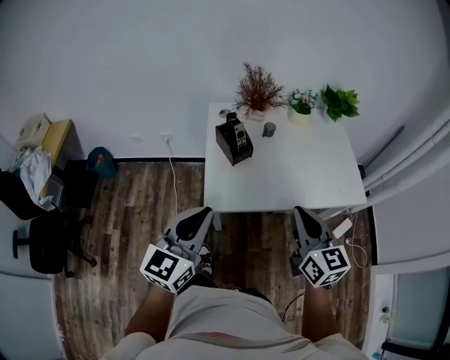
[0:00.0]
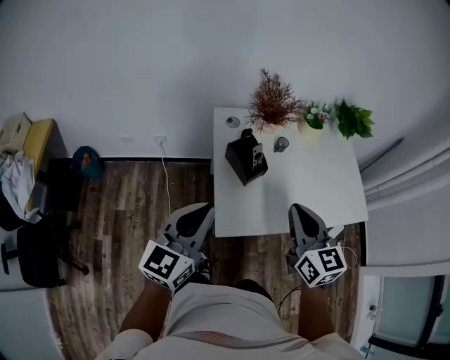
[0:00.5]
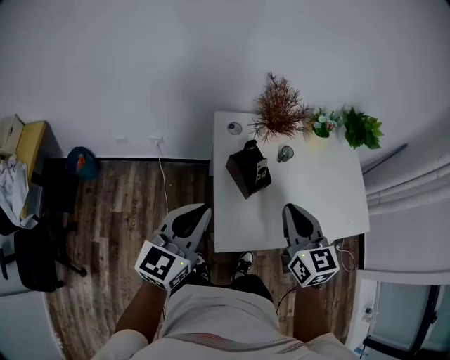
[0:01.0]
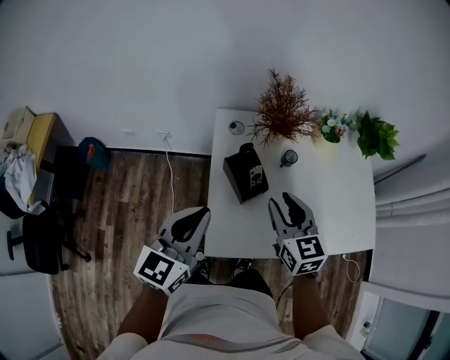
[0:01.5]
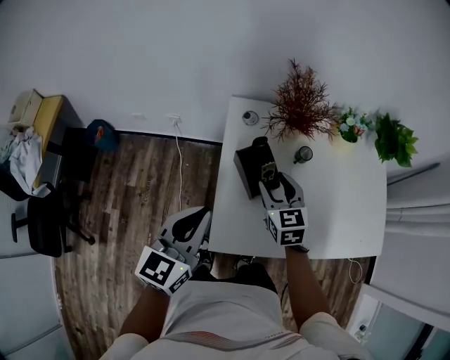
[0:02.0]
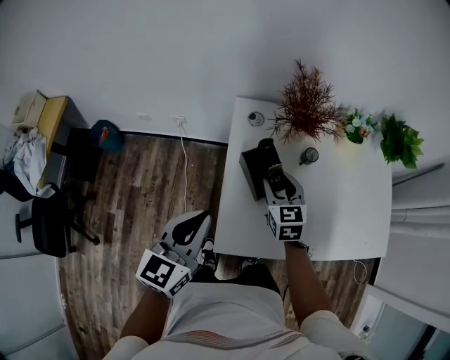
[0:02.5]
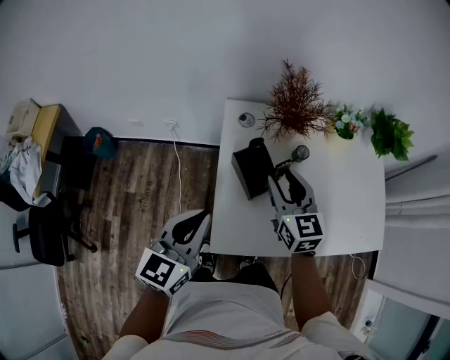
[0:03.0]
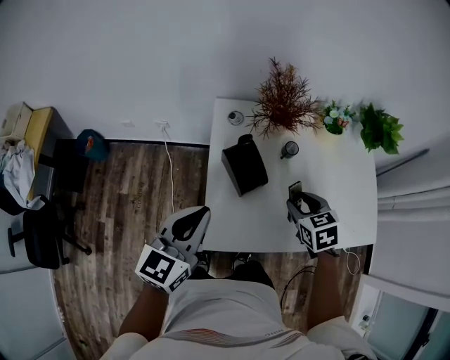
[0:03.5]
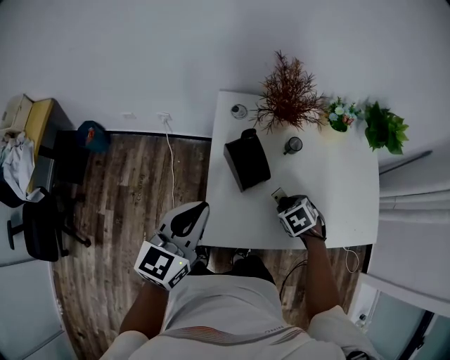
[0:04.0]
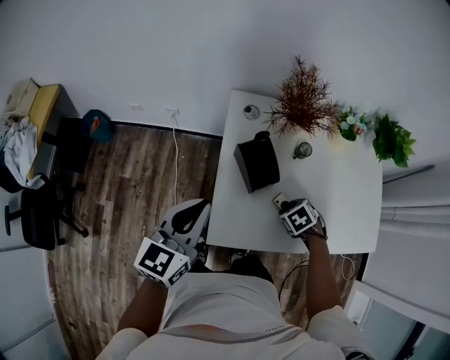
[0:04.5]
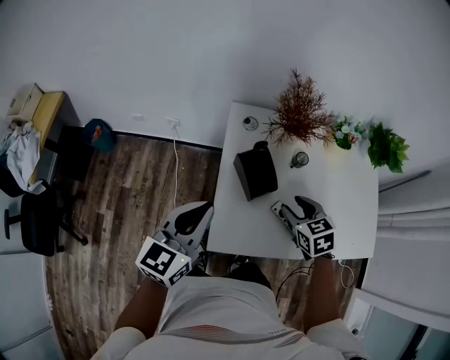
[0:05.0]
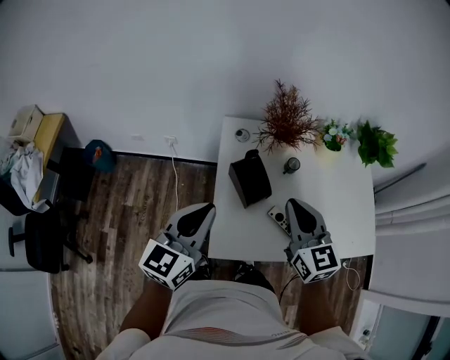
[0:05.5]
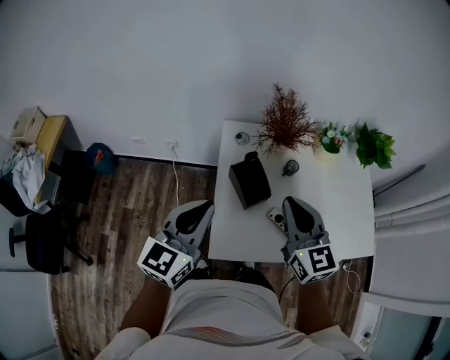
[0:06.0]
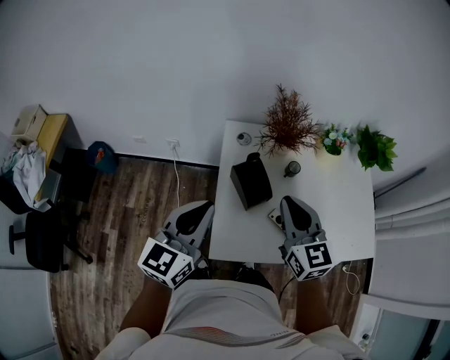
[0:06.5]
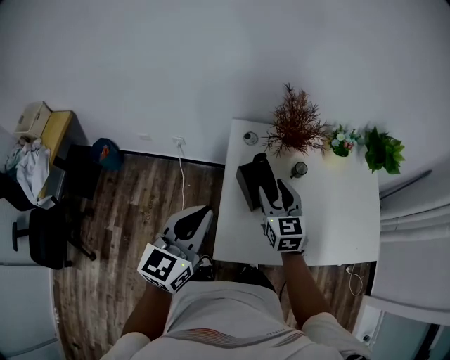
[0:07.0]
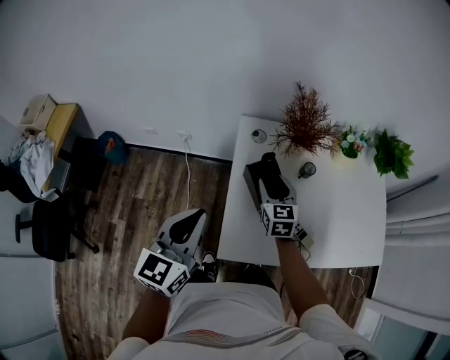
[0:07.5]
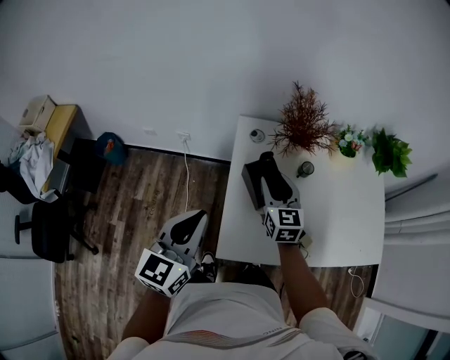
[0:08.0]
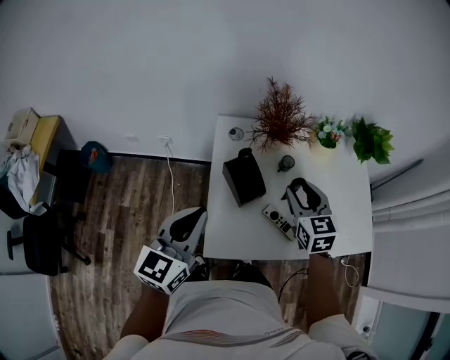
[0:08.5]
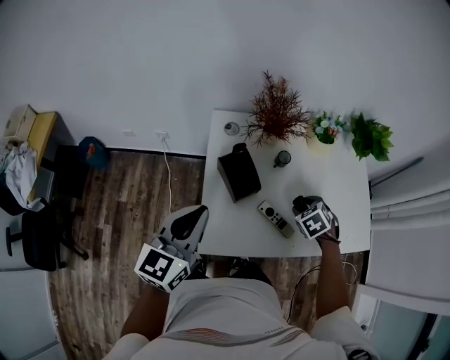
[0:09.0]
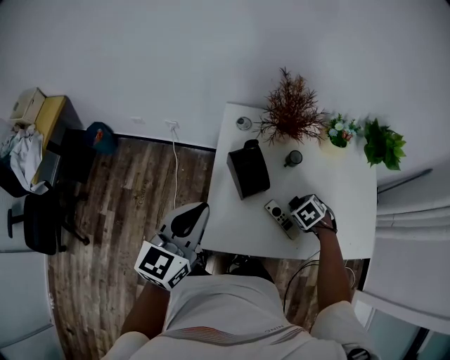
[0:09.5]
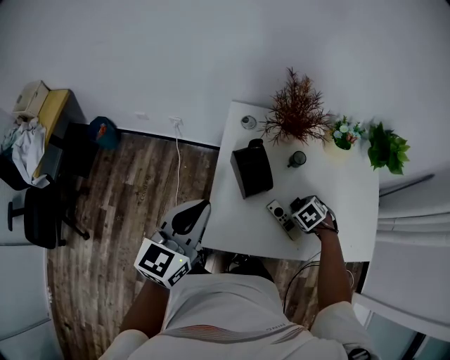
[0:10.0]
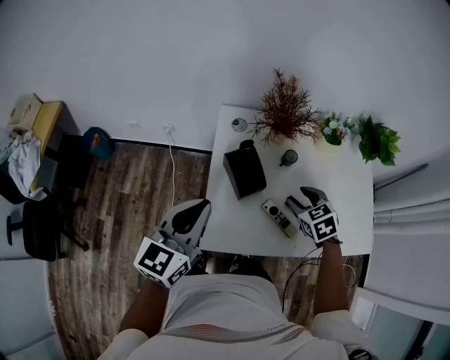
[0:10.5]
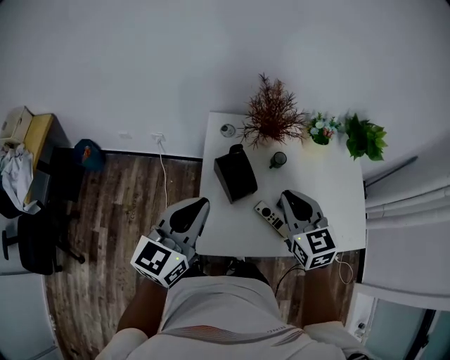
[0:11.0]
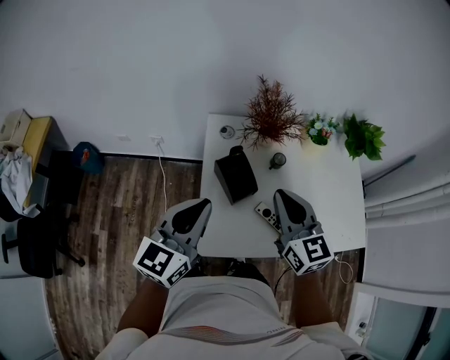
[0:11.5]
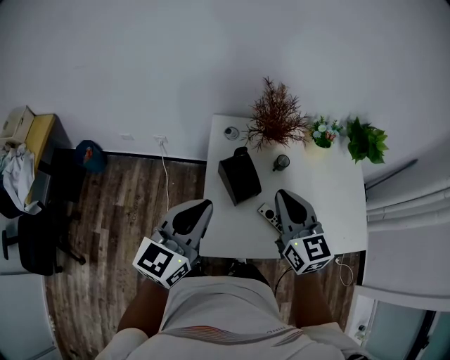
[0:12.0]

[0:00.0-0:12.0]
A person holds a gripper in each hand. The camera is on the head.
0.0 to 2.0 s: The left gripper heads forward, covering about 20 cm. The right gripper goes some 35 cm forward, to the left and downward, changes its angle by roughly 20 degrees, and opens its fingers.
2.0 to 4.0 s: The right gripper moves some 20 cm, and angles its fingers downward, by approximately 50 degrees.
4.0 to 6.0 s: The left gripper moves upward, roughly 5 cm; the right gripper goes some 30 cm upward, tilts its fingers about 70 degrees upward, and closes its fingers.
6.0 to 8.0 s: The right gripper is displaced downward, forward and to the left by some 15 cm, and opens its fingers. The left gripper ends up some 5 cm from where it was.
8.0 to 10.0 s: The right gripper changes place by some 30 cm, and tips its fingers downward by approximately 60 degrees.
10.0 to 12.0 s: The right gripper moves upward, approximately 30 cm, angles its fingers upward, by approximately 70 degrees, and closes.

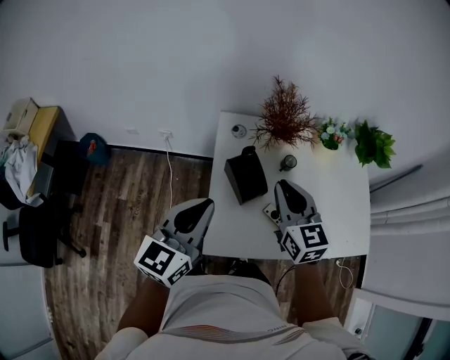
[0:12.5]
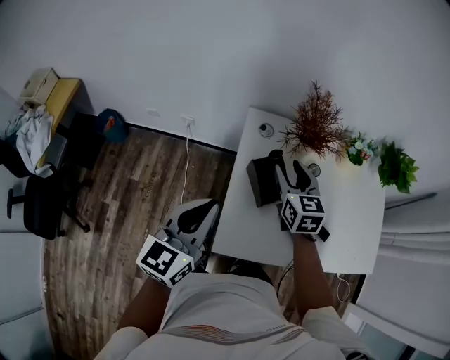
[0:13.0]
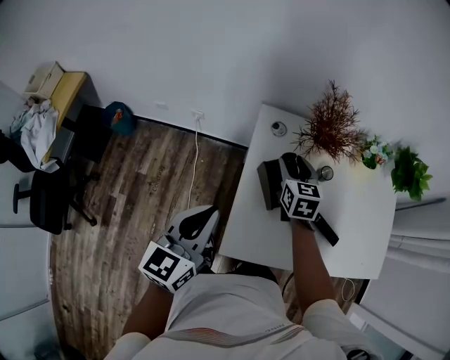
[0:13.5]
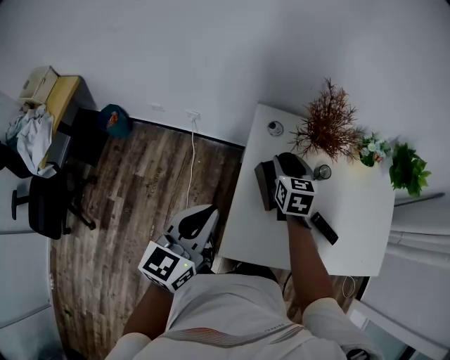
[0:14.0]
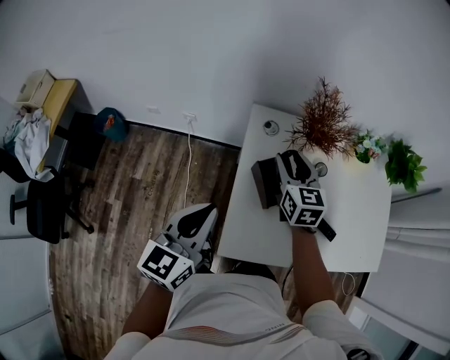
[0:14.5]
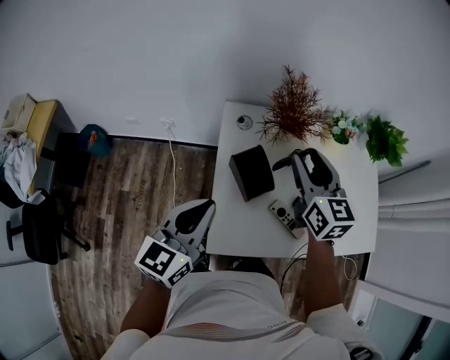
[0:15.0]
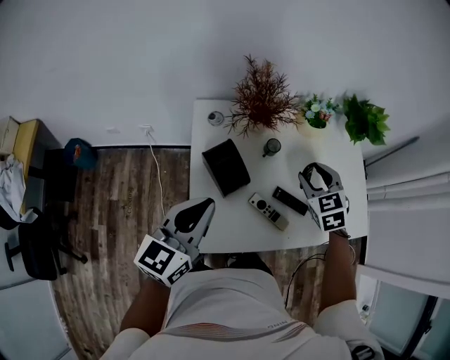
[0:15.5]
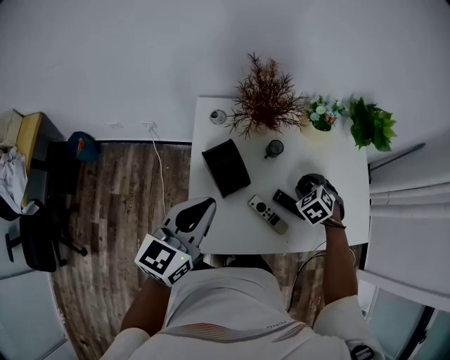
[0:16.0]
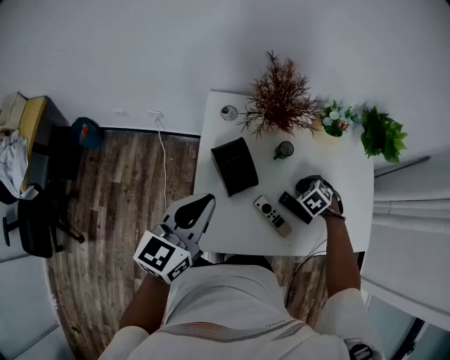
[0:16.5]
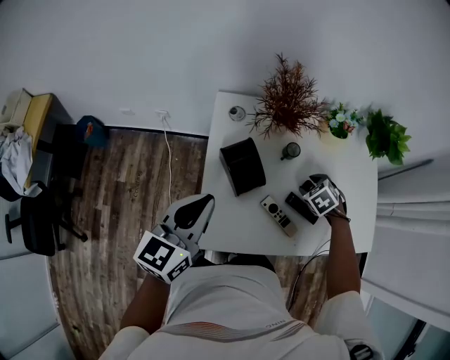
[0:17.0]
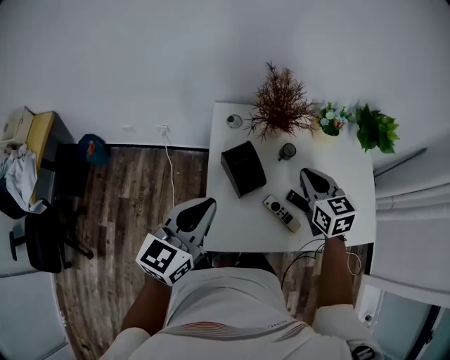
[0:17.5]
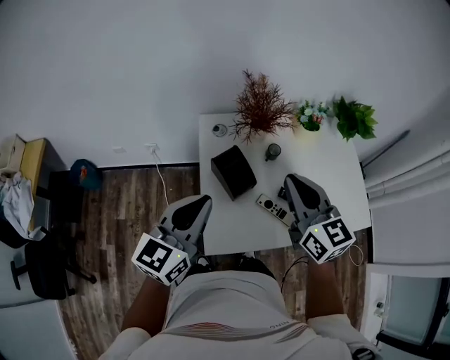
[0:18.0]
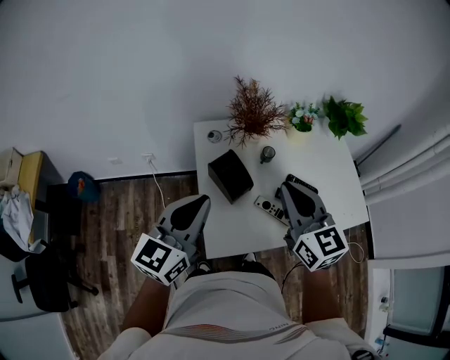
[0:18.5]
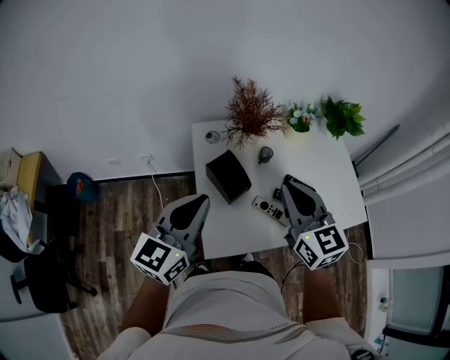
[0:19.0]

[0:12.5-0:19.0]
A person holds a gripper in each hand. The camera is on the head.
12.5 to 14.5 s: The left gripper travels to the left by approximately 5 cm; the right gripper is displaced forward, downward and to the left by roughly 15 cm, and opens its fingers.
14.5 to 17.0 s: The right gripper ends up roughly 30 cm from where it was, and tips its fingers downward by approximately 50 degrees.
17.0 to 19.0 s: The right gripper goes some 35 cm upward and backward, tips its fingers upward by roughly 60 degrees, and closes; the left gripper shifts roughly 10 cm upward.

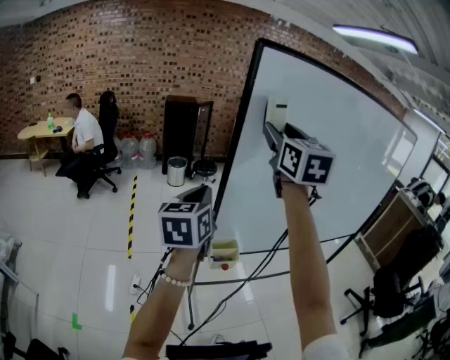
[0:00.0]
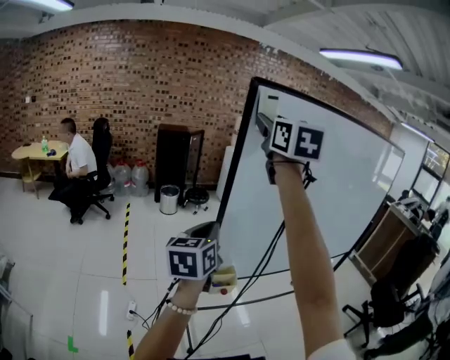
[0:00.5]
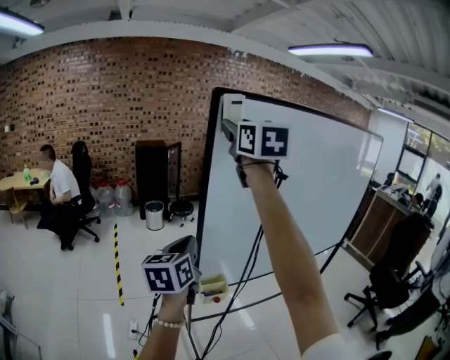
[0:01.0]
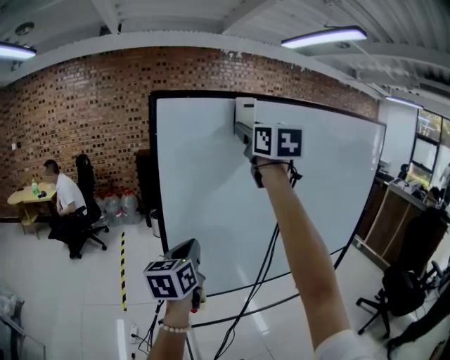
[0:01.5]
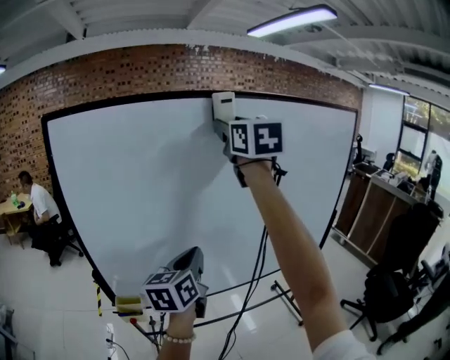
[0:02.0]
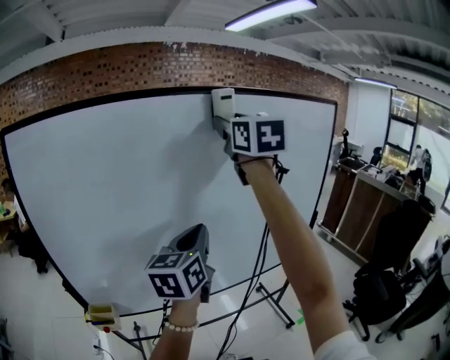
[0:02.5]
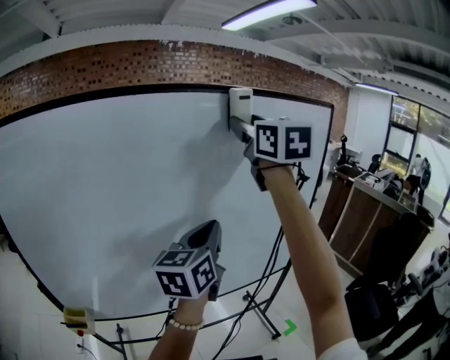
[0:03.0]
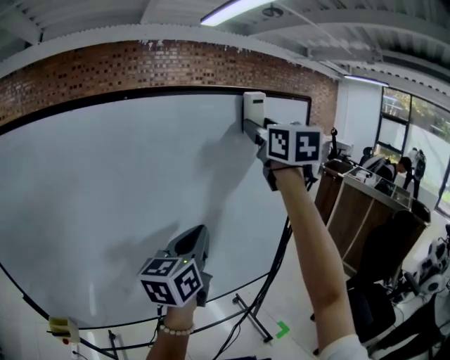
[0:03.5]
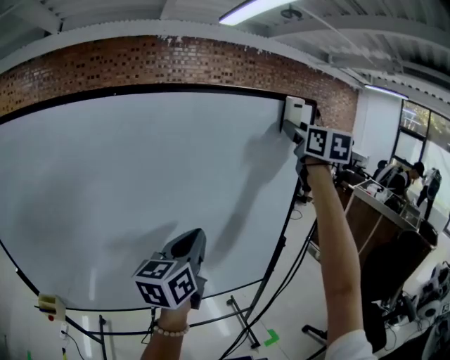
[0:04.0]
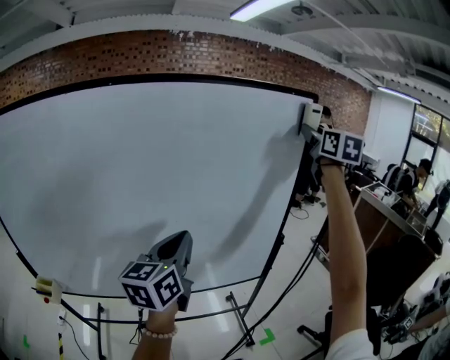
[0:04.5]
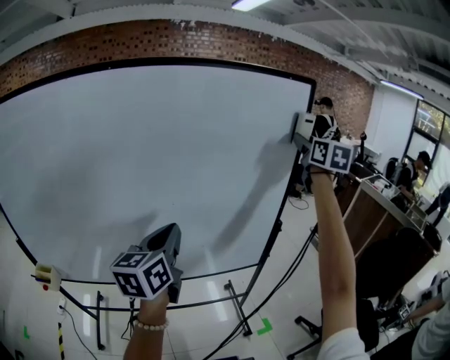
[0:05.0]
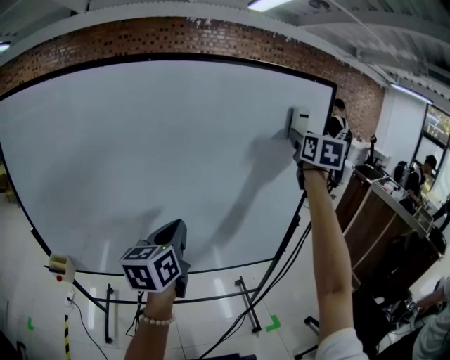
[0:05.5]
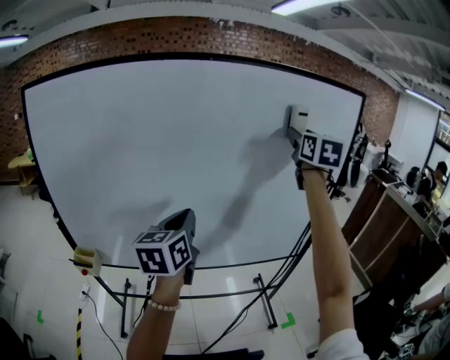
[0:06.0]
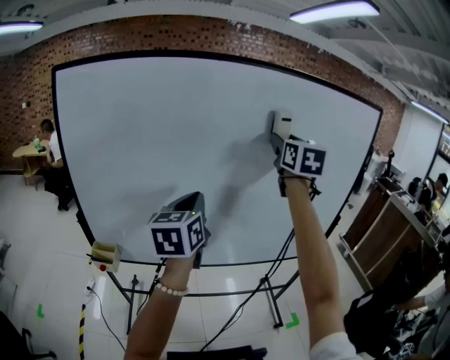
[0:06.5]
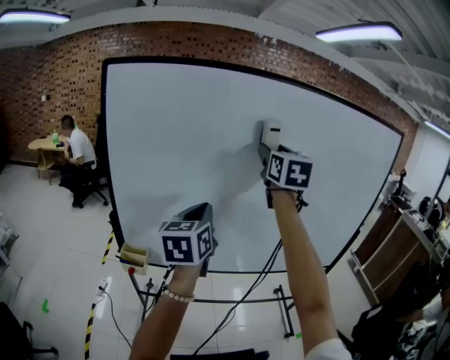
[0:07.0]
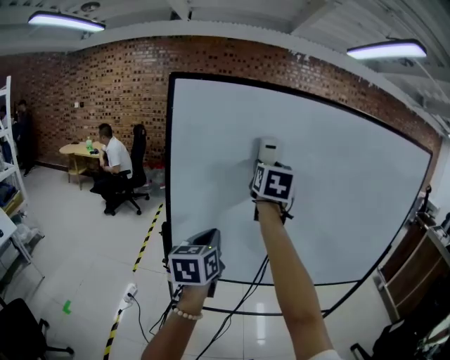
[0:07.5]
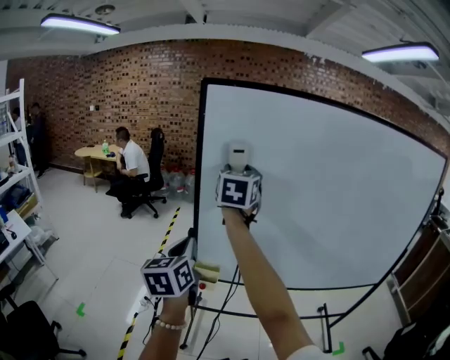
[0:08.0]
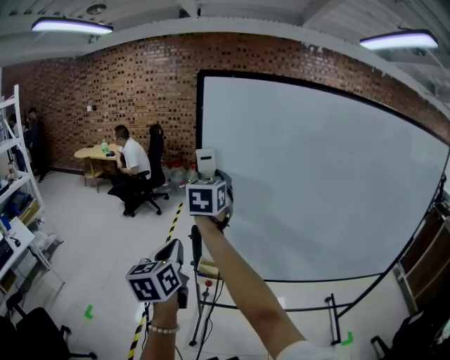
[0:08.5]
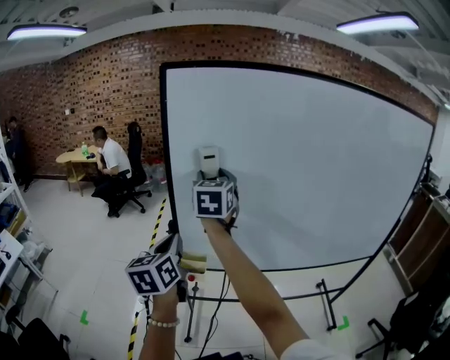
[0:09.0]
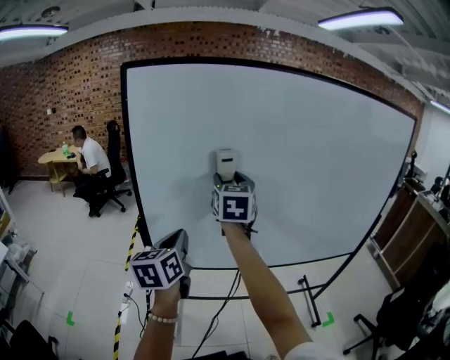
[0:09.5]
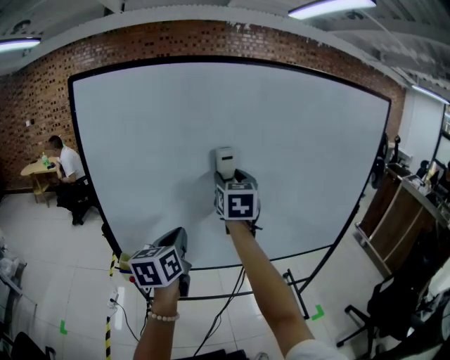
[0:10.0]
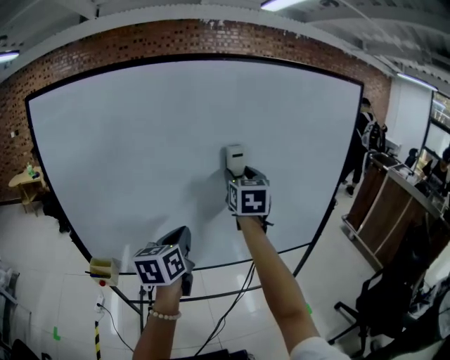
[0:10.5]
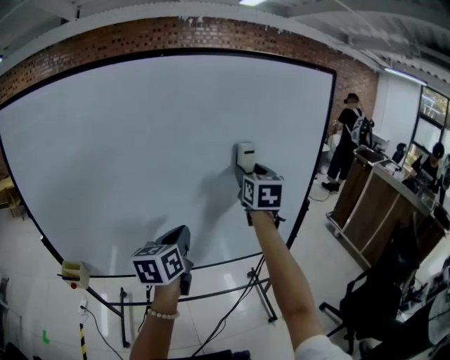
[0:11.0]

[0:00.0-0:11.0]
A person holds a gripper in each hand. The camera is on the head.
0.0 to 2.0 s: The two grippers travel together, to the right, about 50 cm.
2.0 to 3.5 s: The pair of grippers is taken to the right and forward, about 40 cm.
3.5 to 5.5 s: The right gripper shifts roughly 15 cm to the right and downward, while the left gripper travels downward and backward by about 10 cm, and swivels about 20 degrees.
5.5 to 7.5 s: Both grippers are carried to the left, roughly 60 cm.
7.5 to 9.0 s: The left gripper heads to the left, covering about 15 cm; the right gripper heads to the left and downward, covering roughly 20 cm.
9.0 to 11.0 s: The two grippers travel together, to the right, roughly 70 cm. The left gripper swivels roughly 20 degrees.
